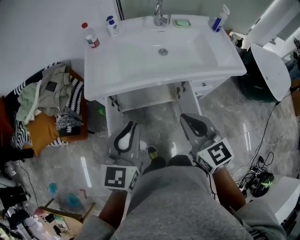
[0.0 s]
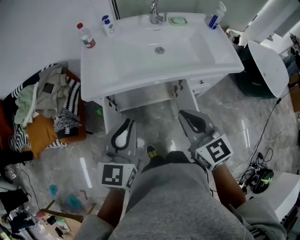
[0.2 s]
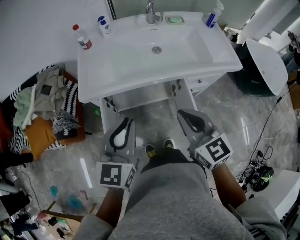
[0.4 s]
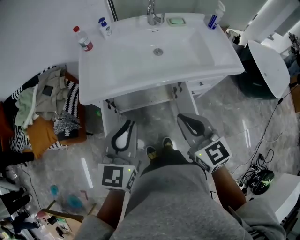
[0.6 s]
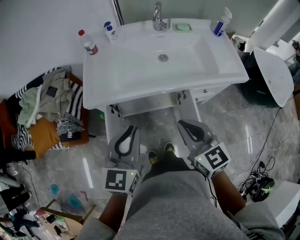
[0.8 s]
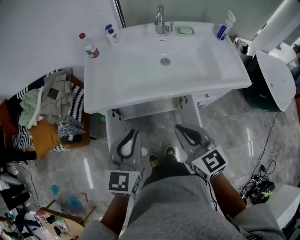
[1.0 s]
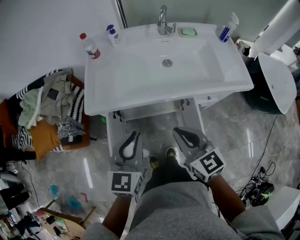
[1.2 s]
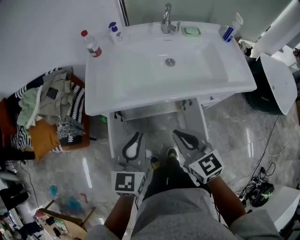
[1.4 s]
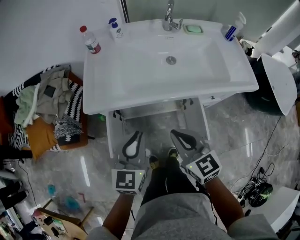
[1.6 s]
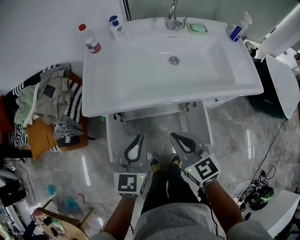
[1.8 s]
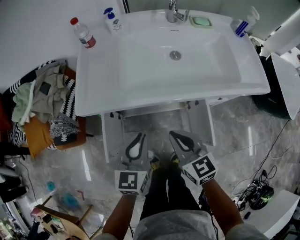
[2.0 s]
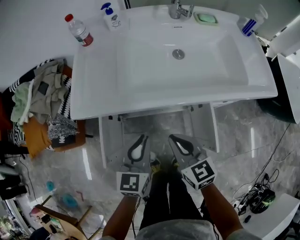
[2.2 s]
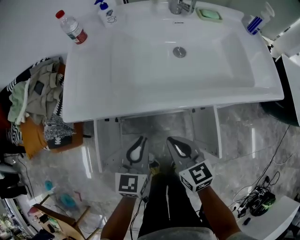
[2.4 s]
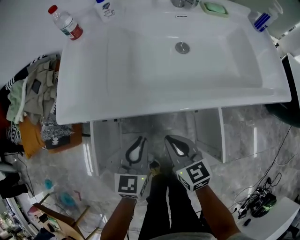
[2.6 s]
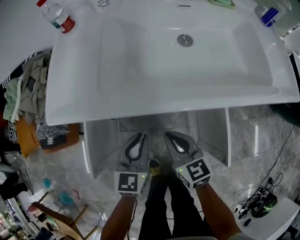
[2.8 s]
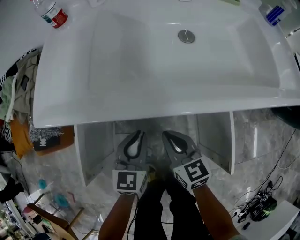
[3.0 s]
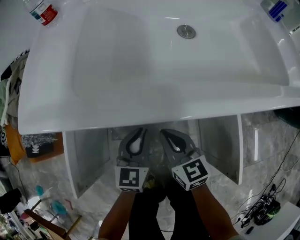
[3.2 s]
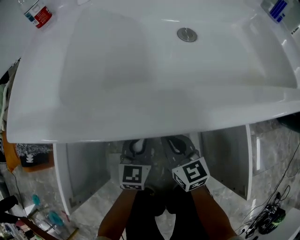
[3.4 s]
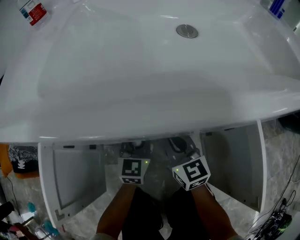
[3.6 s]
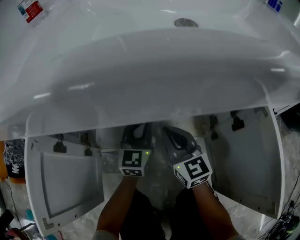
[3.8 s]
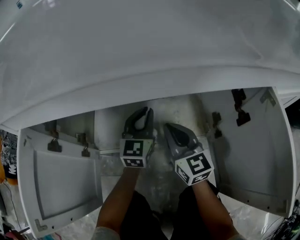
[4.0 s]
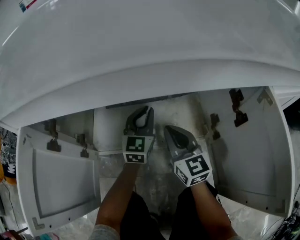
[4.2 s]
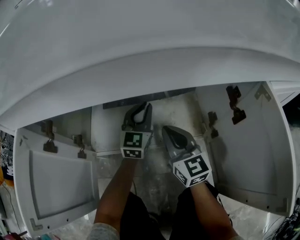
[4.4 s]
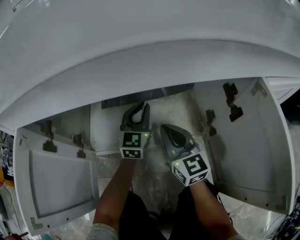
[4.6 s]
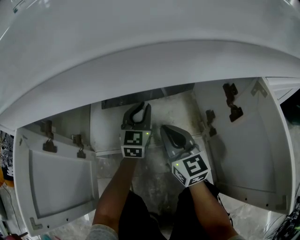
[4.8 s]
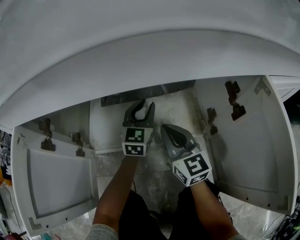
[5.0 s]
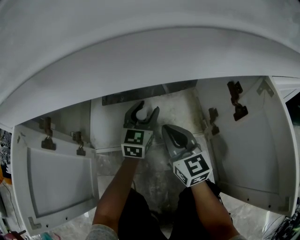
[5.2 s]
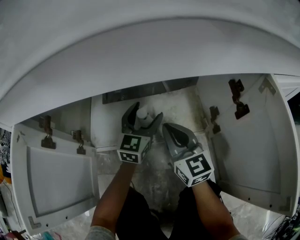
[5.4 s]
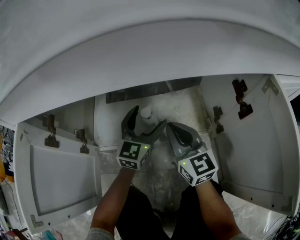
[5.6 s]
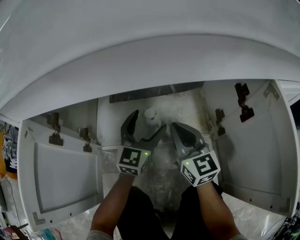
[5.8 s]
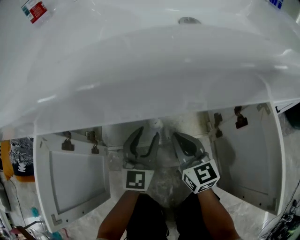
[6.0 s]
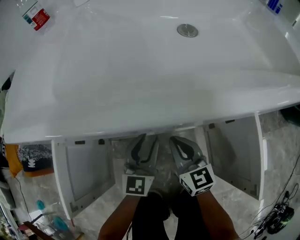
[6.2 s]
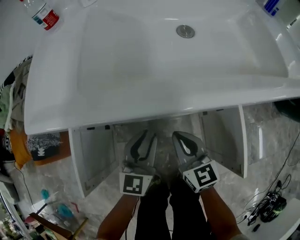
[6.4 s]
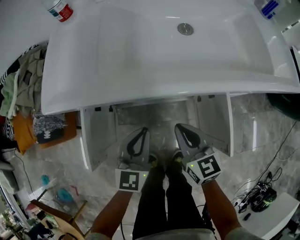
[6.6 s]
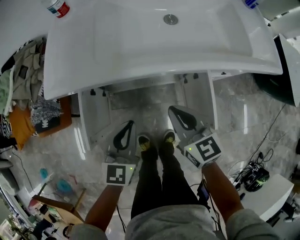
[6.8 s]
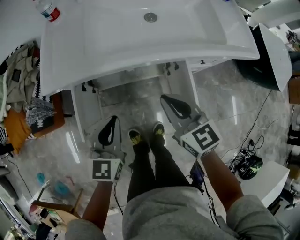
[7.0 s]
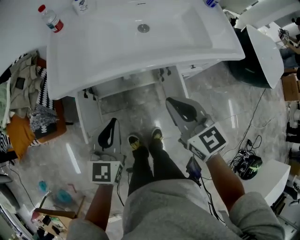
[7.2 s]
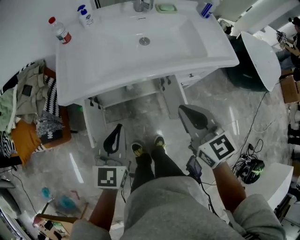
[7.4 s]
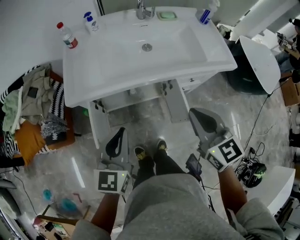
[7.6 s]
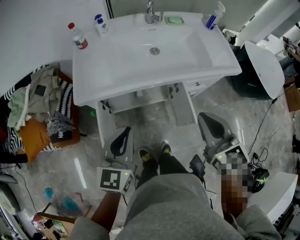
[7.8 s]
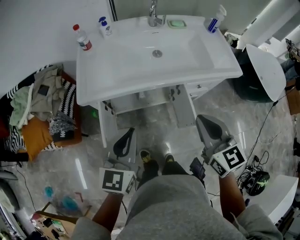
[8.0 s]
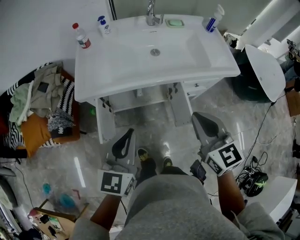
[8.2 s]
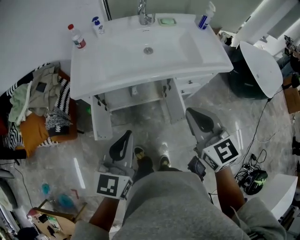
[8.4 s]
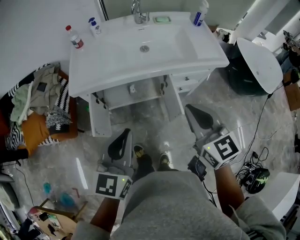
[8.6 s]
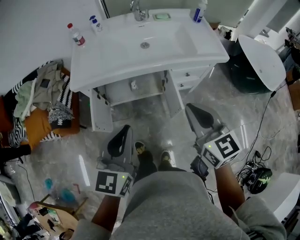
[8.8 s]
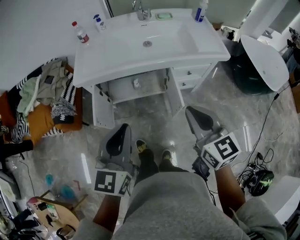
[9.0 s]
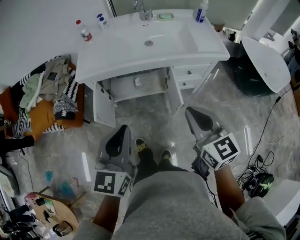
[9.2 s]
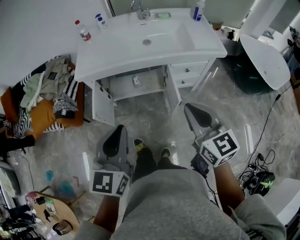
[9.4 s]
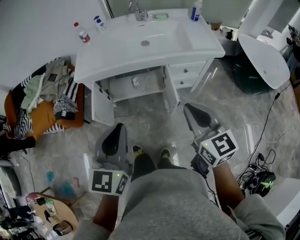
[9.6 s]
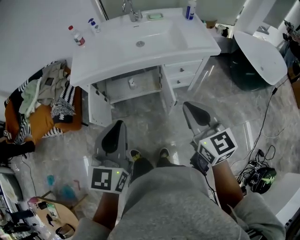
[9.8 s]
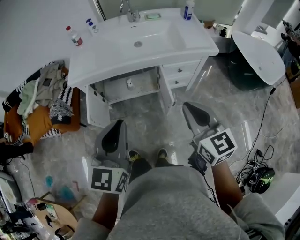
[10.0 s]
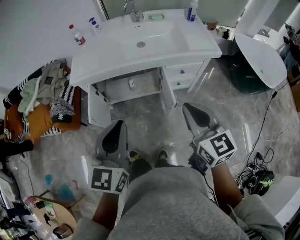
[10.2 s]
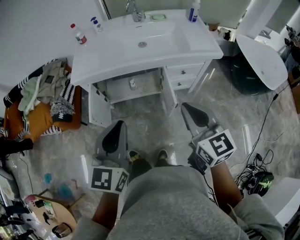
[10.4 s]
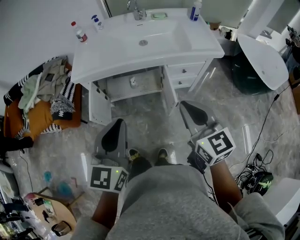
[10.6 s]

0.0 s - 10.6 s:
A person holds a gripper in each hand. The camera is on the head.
0.0 s - 1.6 s: The grippers both shift downward and forward by about 10 cm.
1.6 s - 3.0 s: The two grippers go approximately 30 cm downward.
3.0 s - 4.6 s: Both grippers move downward and forward, about 30 cm. The right gripper swivels some 20 degrees; the left gripper swivels some 20 degrees.
4.6 s - 6.0 s: The left gripper moves backward and upward, approximately 15 cm, and opens its fingers.
6.0 s - 7.6 s: The left gripper is displaced upward and backward by some 60 cm, and closes its fingers. The right gripper heads upward, covering approximately 60 cm.
7.6 s - 9.0 s: The right gripper shifts approximately 15 cm backward and to the right. Meanwhile the left gripper goes roughly 20 cm backward, to the right and upward.
9.0 s - 10.6 s: The grippers make only small movements.

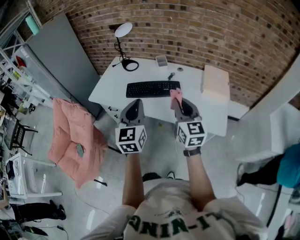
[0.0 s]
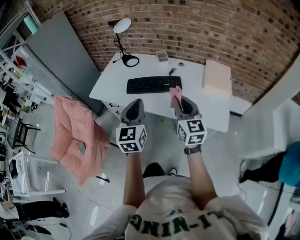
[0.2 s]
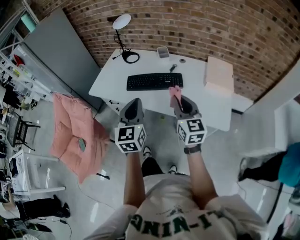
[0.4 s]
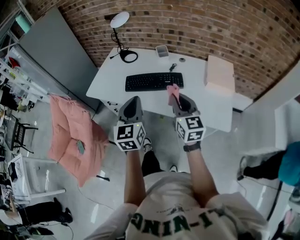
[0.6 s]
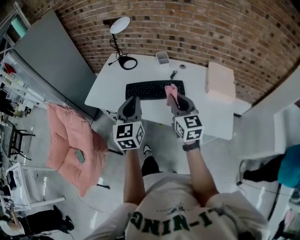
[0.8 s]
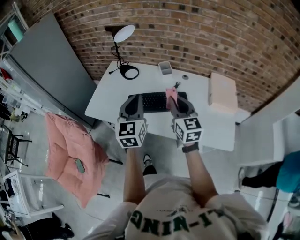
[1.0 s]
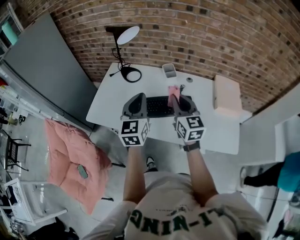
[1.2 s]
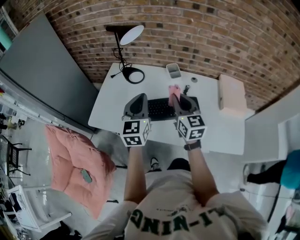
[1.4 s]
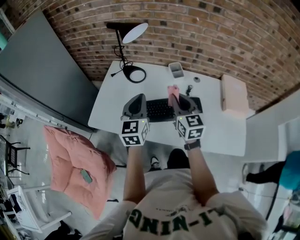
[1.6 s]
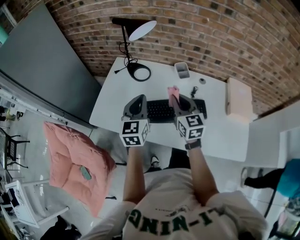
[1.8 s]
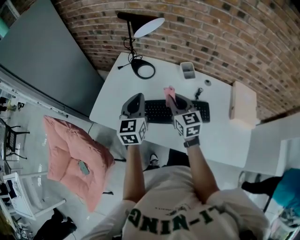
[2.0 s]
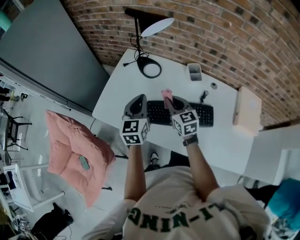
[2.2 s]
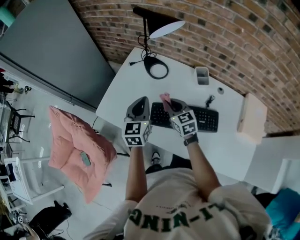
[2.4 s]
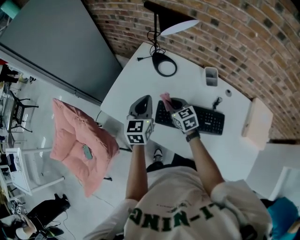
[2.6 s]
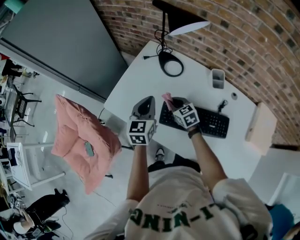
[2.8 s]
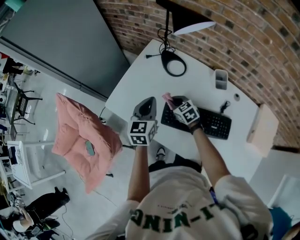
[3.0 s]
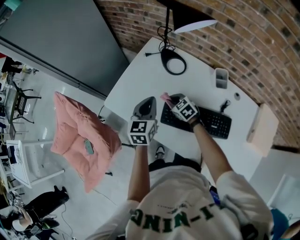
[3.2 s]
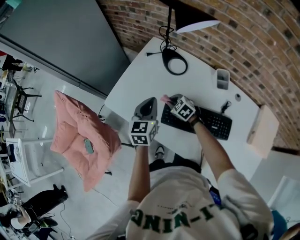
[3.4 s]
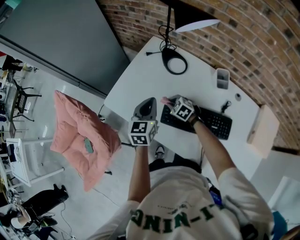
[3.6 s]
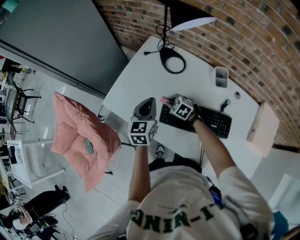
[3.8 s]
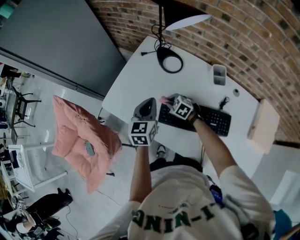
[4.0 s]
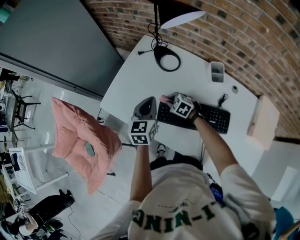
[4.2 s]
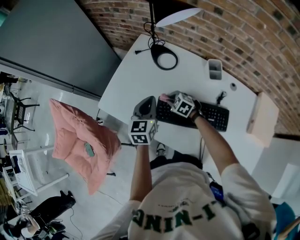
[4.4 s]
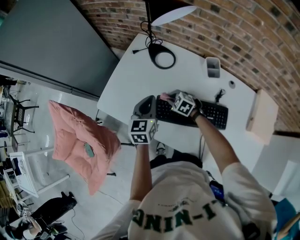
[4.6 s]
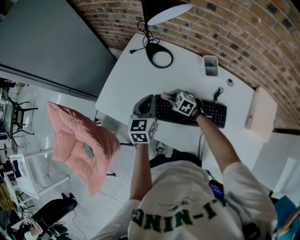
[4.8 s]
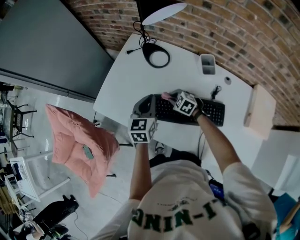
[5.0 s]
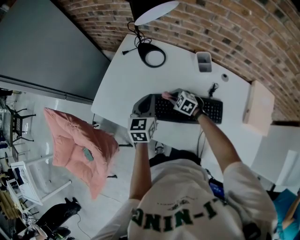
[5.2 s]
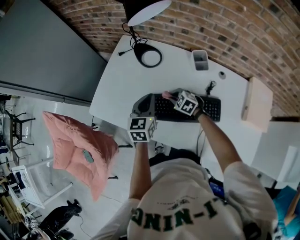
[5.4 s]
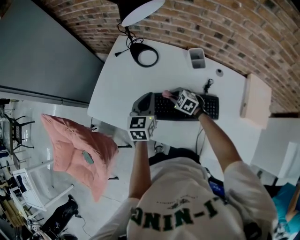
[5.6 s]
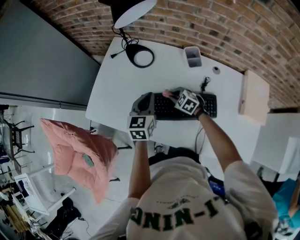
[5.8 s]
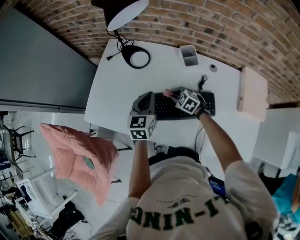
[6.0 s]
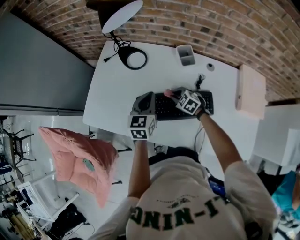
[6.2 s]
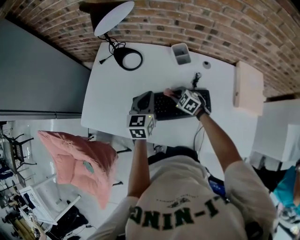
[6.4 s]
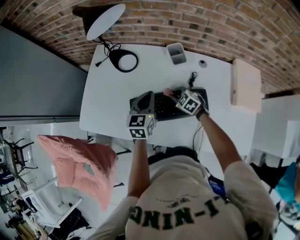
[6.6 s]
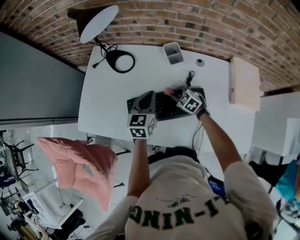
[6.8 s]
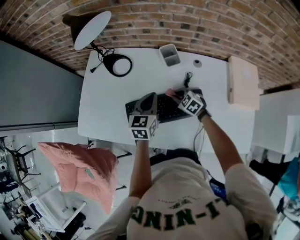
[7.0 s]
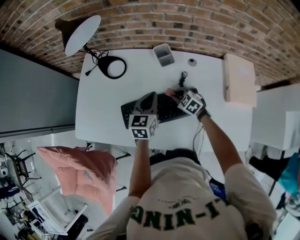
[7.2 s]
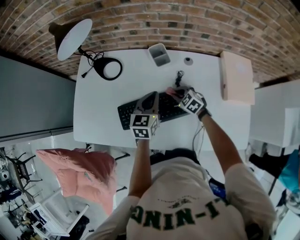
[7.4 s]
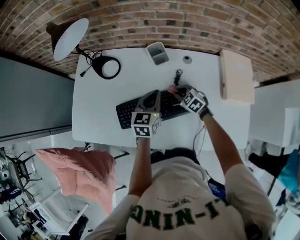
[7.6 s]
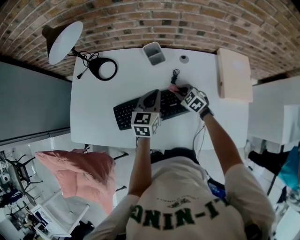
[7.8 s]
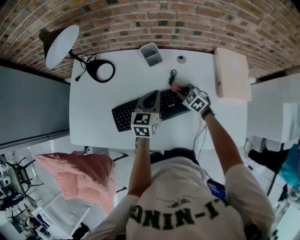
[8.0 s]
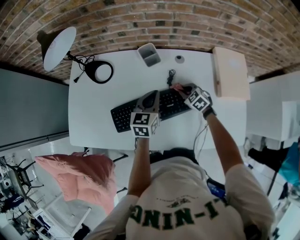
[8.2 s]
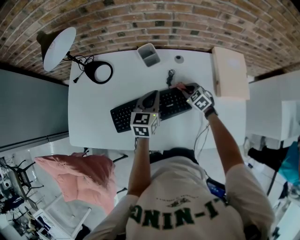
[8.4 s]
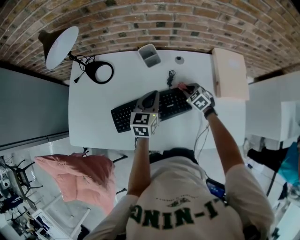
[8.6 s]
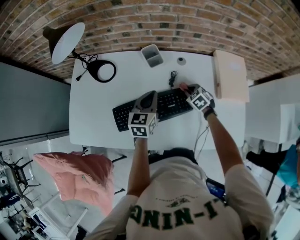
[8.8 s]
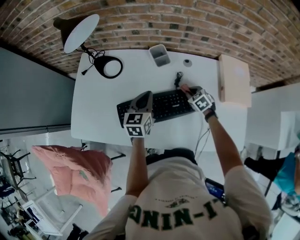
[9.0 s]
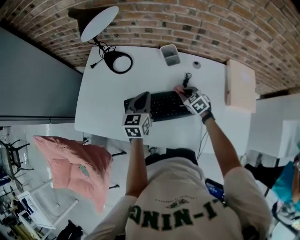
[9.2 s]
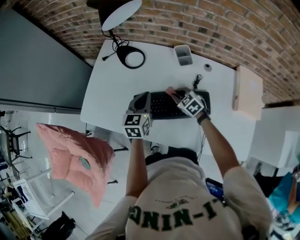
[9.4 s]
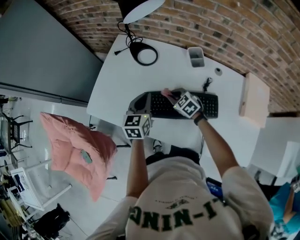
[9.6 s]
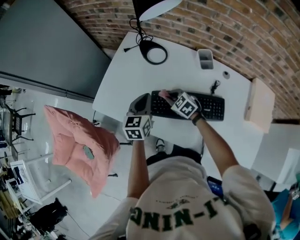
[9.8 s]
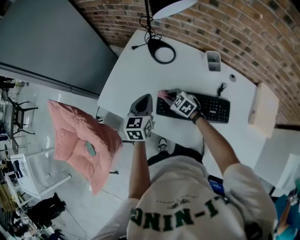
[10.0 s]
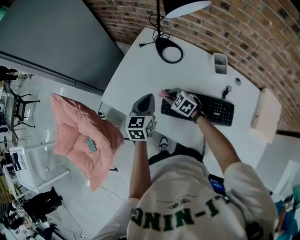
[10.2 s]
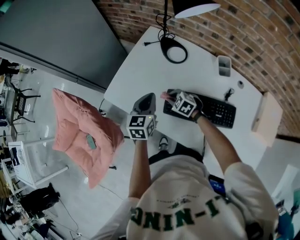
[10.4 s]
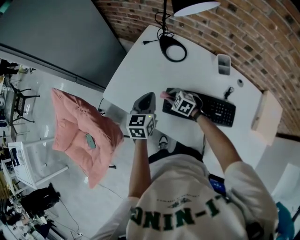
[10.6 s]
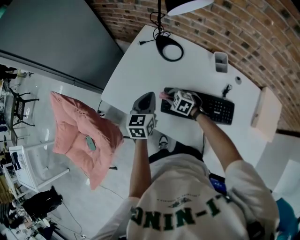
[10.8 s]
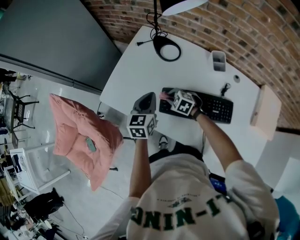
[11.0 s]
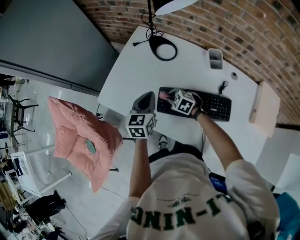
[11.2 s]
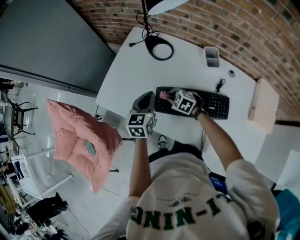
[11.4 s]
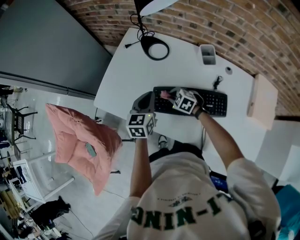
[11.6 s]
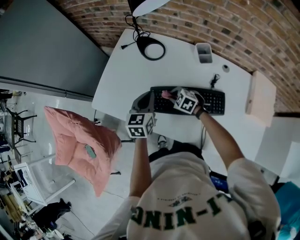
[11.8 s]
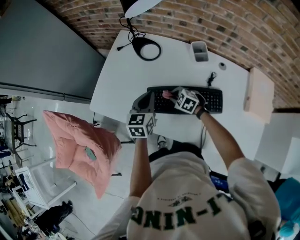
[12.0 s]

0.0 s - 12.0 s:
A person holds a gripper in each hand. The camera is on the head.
0.0 s - 1.6 s: The grippers both shift forward and to the left by some 35 cm.
1.6 s - 3.0 s: The right gripper is displaced downward by roughly 25 cm, and tilts its fingers some 30 degrees downward; the left gripper goes about 10 cm downward, and turns by approximately 20 degrees.
3.0 s - 4.4 s: The right gripper heads downward, covering roughly 5 cm, and turns by some 20 degrees.
4.4 s - 6.0 s: The two grippers go some 10 cm to the right.
6.0 s - 7.6 s: The two grippers go roughly 15 cm to the right.
7.6 s - 9.0 s: The right gripper is displaced to the right by about 5 cm.
9.0 s - 10.4 s: The right gripper changes place by some 40 cm, and changes its angle by some 50 degrees. Meanwhile the left gripper ends up some 25 cm from where it was, and changes its angle by roughly 30 degrees.
10.4 s - 12.0 s: The left gripper shifts roughly 10 cm to the right. Meanwhile the right gripper moves to the right and backward, roughly 10 cm.

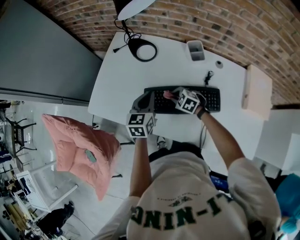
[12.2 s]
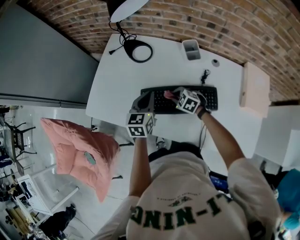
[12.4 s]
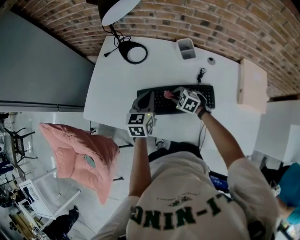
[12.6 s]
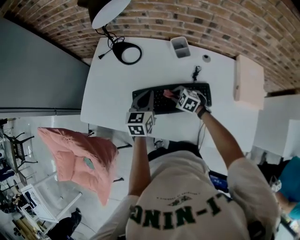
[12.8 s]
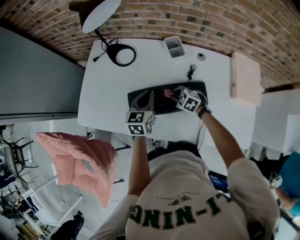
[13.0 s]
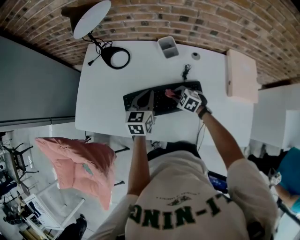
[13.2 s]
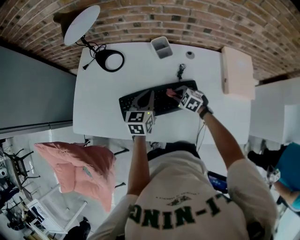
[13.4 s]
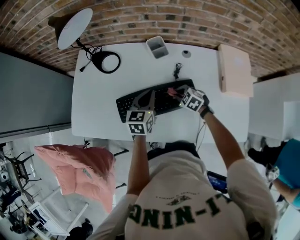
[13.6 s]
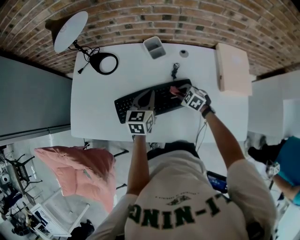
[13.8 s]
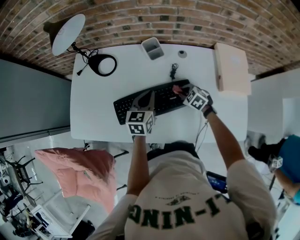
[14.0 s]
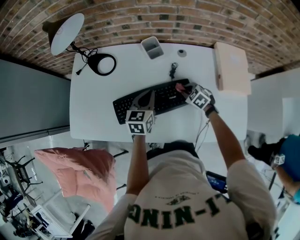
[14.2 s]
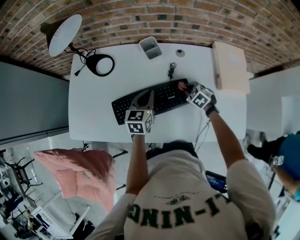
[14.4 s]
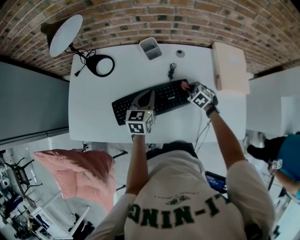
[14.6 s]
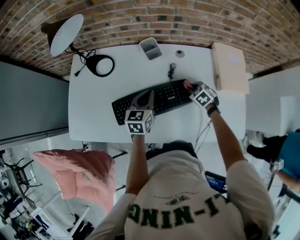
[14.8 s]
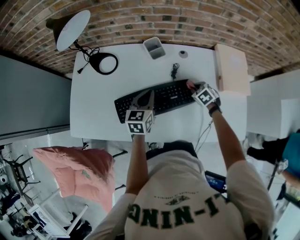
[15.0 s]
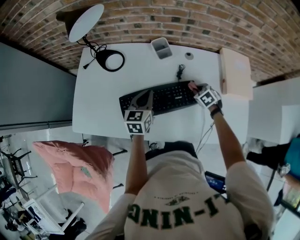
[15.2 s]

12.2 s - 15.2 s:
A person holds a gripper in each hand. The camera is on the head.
12.2 s - 13.8 s: Both grippers travel together to the right, roughly 20 cm. The right gripper turns by approximately 20 degrees.
13.8 s - 15.2 s: The right gripper is displaced to the right by some 10 cm, and turns by about 20 degrees.